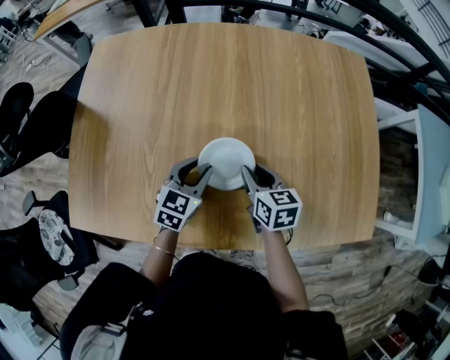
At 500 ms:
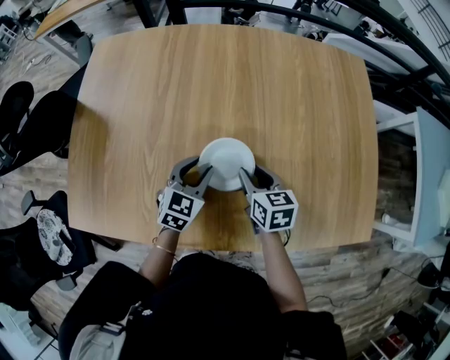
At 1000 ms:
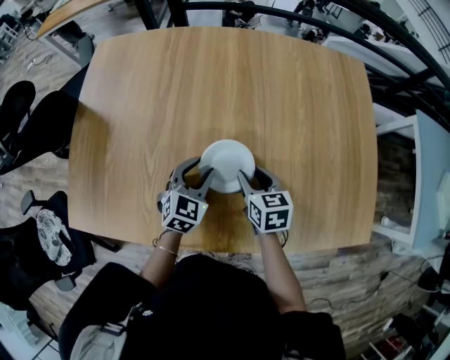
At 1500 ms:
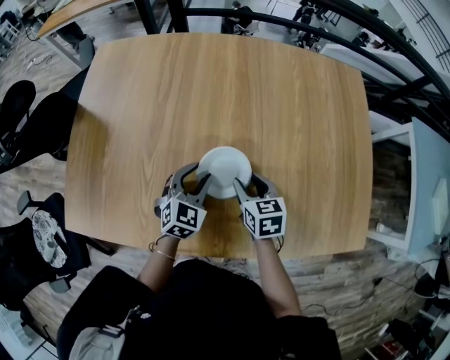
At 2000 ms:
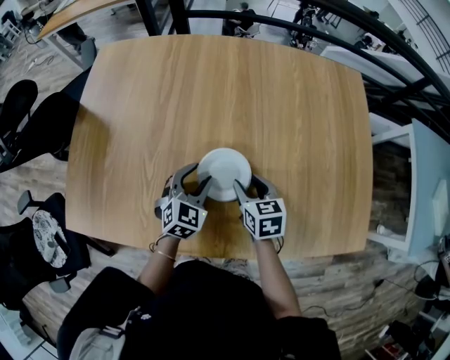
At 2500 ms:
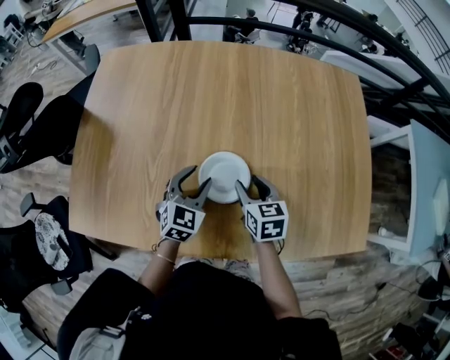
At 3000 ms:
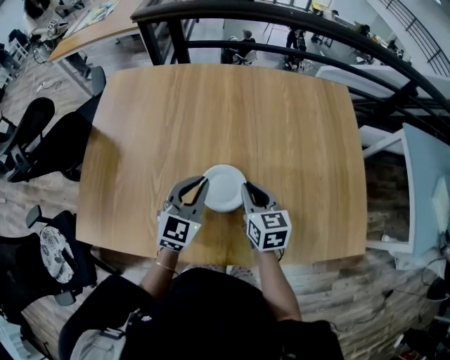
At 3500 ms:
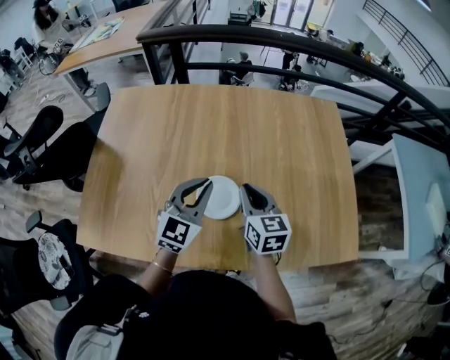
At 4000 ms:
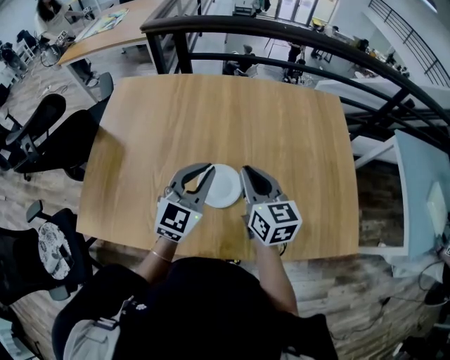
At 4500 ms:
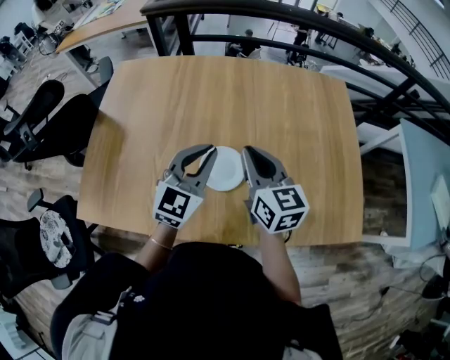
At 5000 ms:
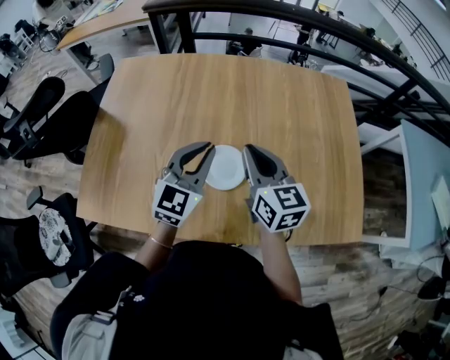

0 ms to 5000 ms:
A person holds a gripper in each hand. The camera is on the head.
0 ms to 2500 ms: The right gripper opens its fingers.
2500 ms to 5000 ms: Both grippers move upward, approximately 20 cm. The right gripper swivels roughly 30 degrees, and closes, while the left gripper changes its angle by roughly 20 degrees, and closes its fingers.

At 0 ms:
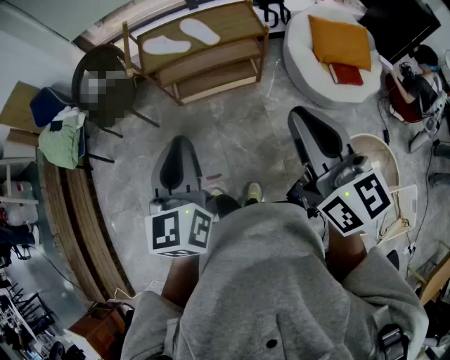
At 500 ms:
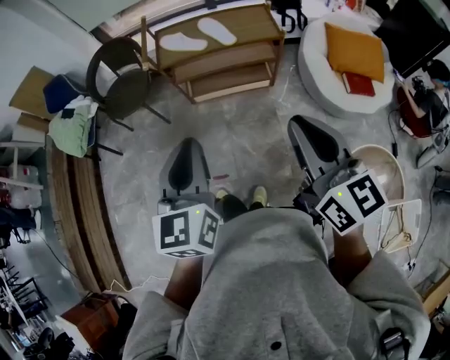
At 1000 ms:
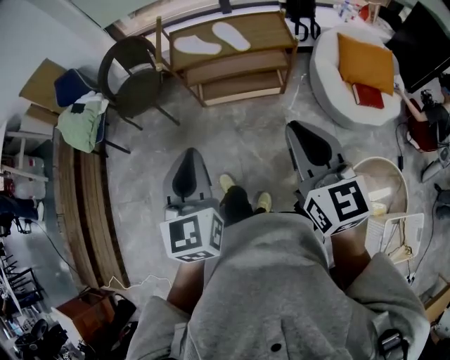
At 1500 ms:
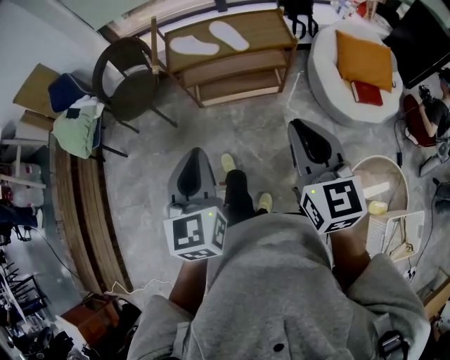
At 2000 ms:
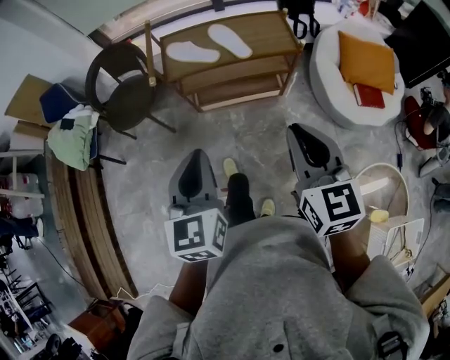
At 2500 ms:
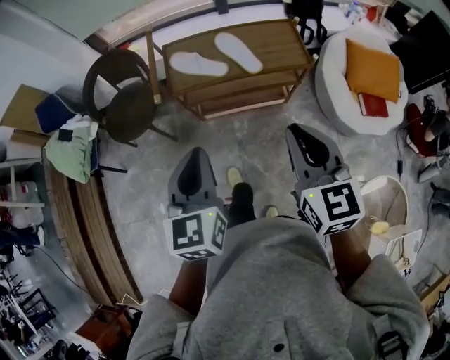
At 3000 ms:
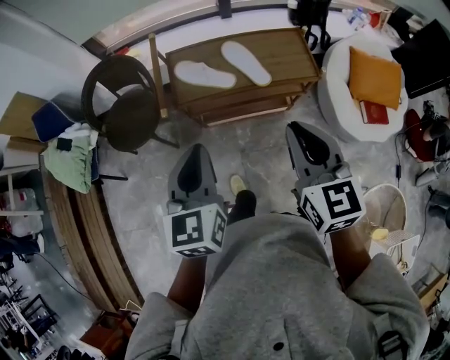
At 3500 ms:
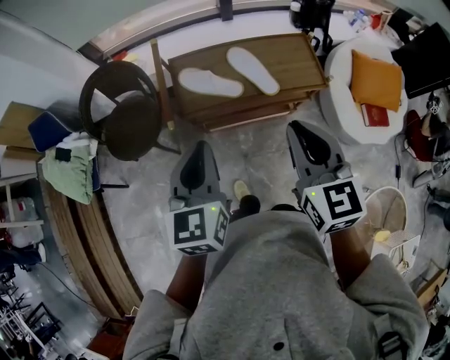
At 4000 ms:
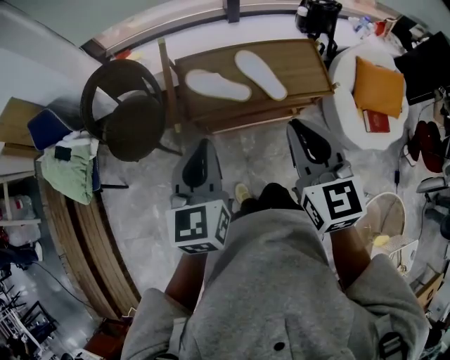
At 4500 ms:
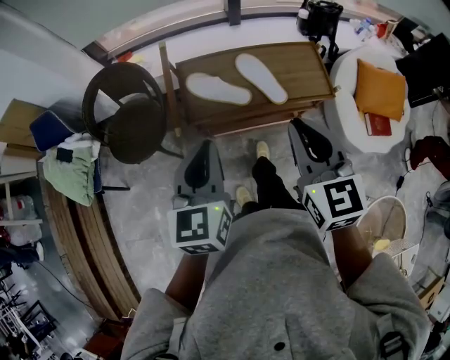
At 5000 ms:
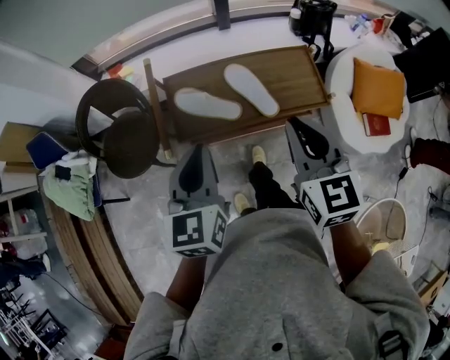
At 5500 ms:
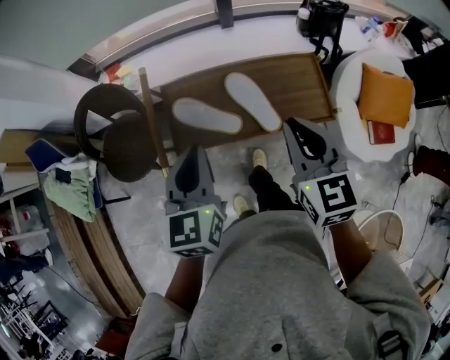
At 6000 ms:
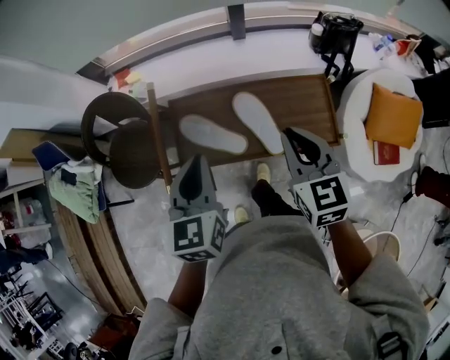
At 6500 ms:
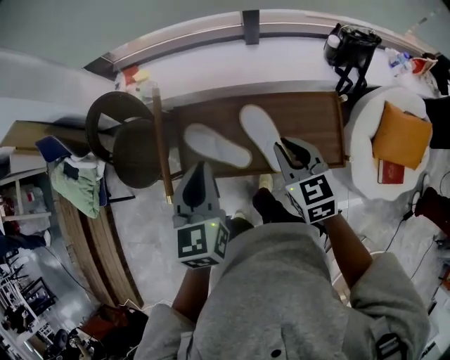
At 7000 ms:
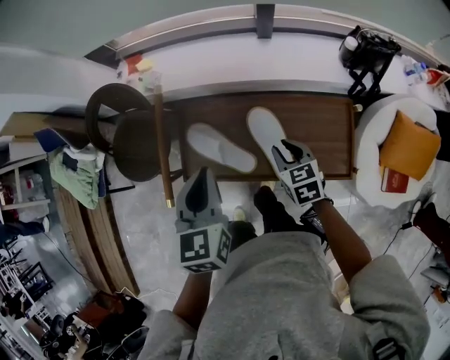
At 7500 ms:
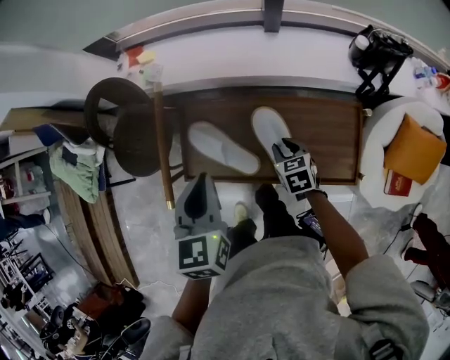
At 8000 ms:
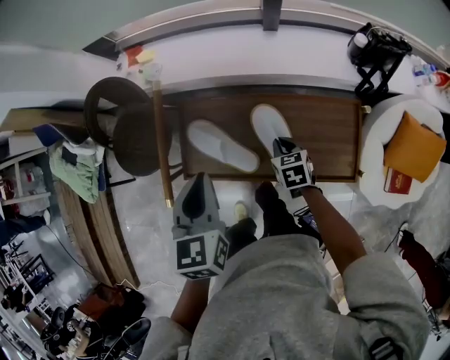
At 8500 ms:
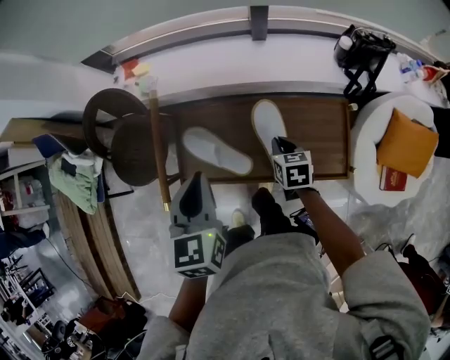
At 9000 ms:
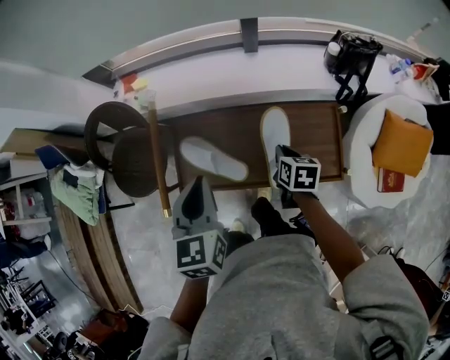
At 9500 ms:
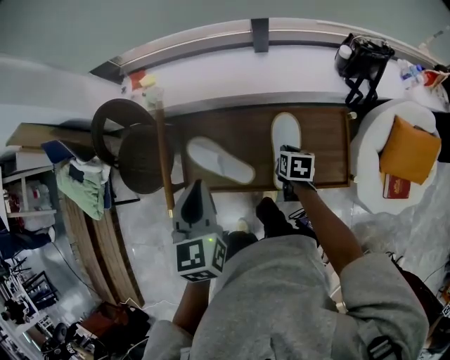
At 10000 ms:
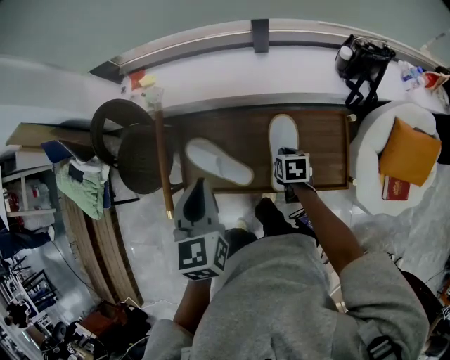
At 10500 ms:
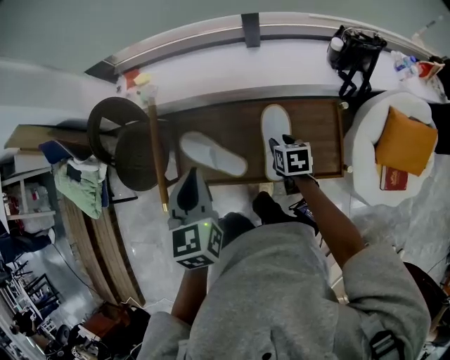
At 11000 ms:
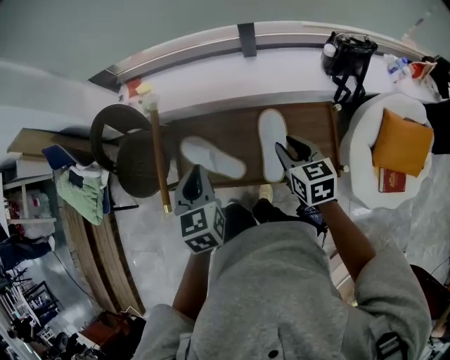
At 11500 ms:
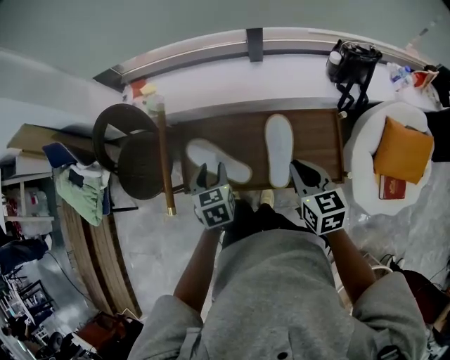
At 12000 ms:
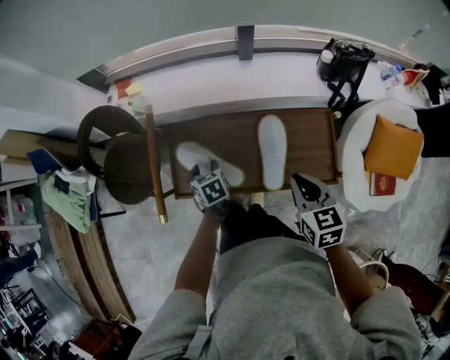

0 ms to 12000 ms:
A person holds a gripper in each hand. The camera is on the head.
0 ms to 2000 ms: The right gripper travels forward and downward by approximately 15 cm, and rotates approximately 20 degrees, while the left gripper moves forward, about 10 cm.
2000 ms to 4000 ms: The right gripper travels forward and to the left by some 30 cm; the left gripper heads forward, covering approximately 30 cm.
4000 ms to 6000 ms: Both grippers travel together forward and to the right, approximately 20 cm.
6000 ms to 8000 ms: The left gripper moves downward and forward, some 10 cm; the right gripper is displaced downward by some 30 cm, and changes its angle by about 30 degrees.
8000 ms to 10000 ms: The right gripper shifts some 5 cm to the right.
10000 ms to 12000 ms: The left gripper moves downward, some 25 cm, turns by approximately 30 degrees, and opens up, while the right gripper travels upward and backward by roughly 20 cm, turns by approximately 30 degrees, and opens, then closes once more.

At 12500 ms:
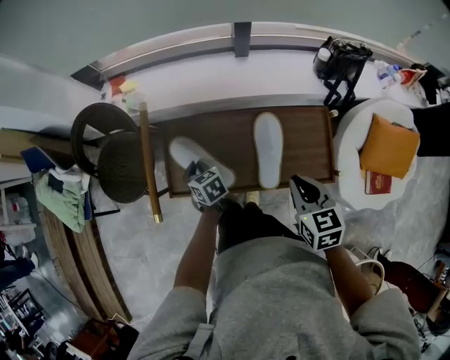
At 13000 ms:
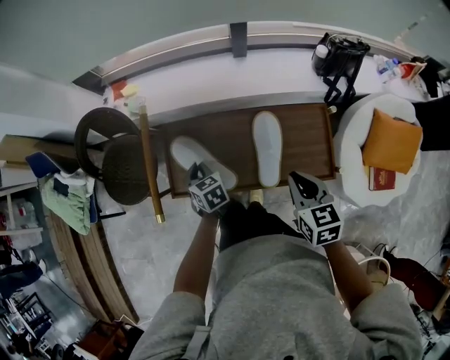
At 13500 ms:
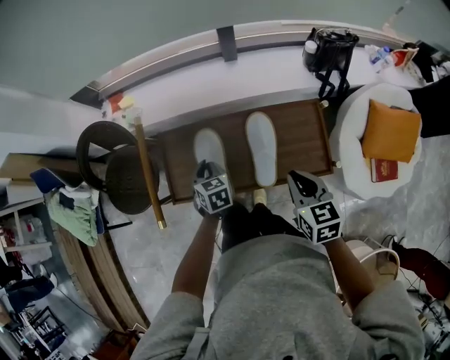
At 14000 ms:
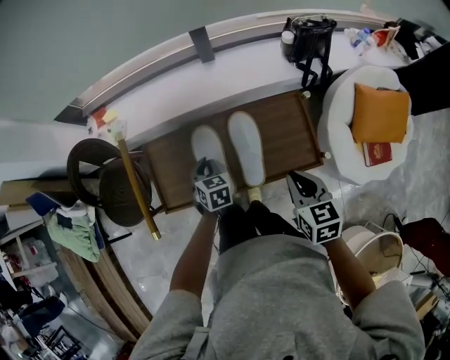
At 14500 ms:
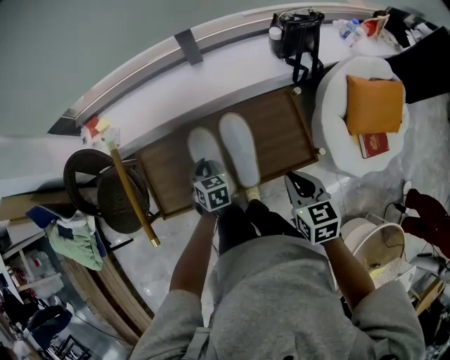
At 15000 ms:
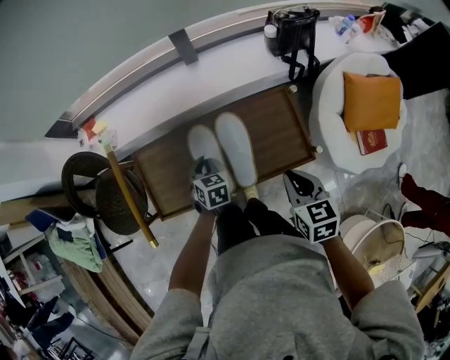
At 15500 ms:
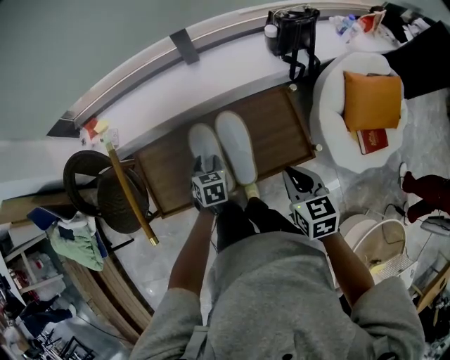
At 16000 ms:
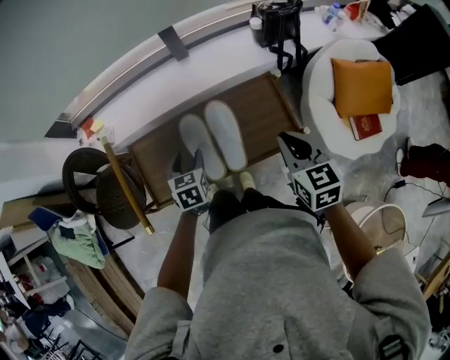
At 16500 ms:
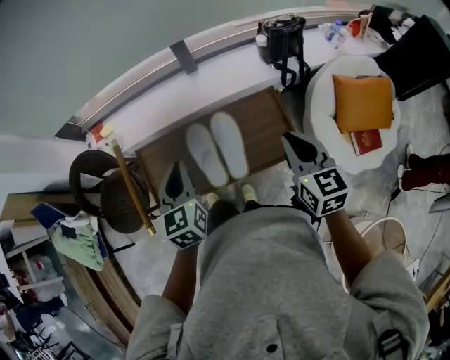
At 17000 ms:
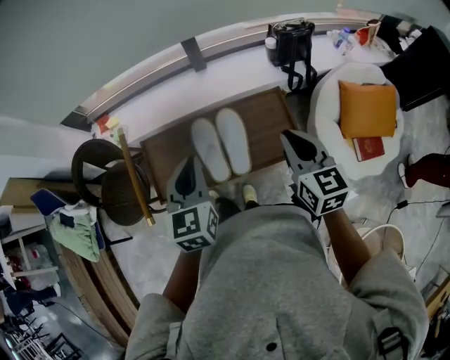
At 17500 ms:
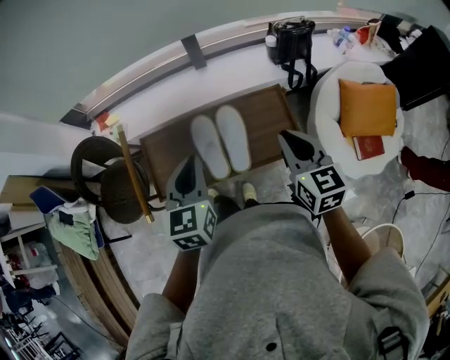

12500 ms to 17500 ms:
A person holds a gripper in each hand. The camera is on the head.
12500 ms to 15000 ms: The left gripper goes approximately 15 cm to the right, and rotates some 40 degrees, while the right gripper moves to the right, some 5 cm.
15000 ms to 17500 ms: The right gripper moves upward, roughly 15 cm, and swivels some 20 degrees; the left gripper goes approximately 30 cm upward, turns by some 30 degrees, and opens and closes again.

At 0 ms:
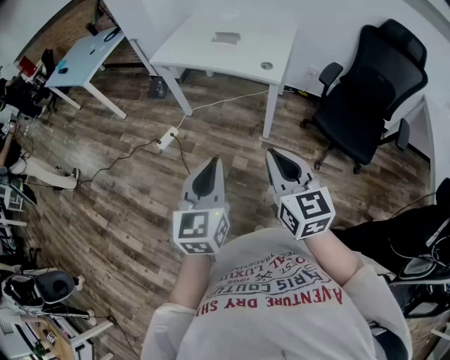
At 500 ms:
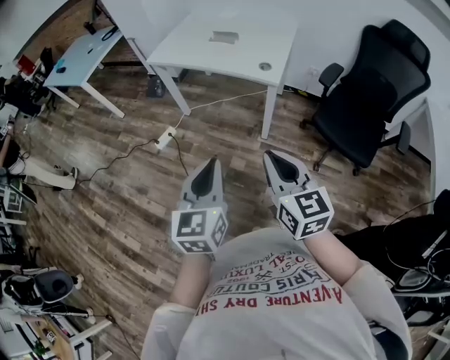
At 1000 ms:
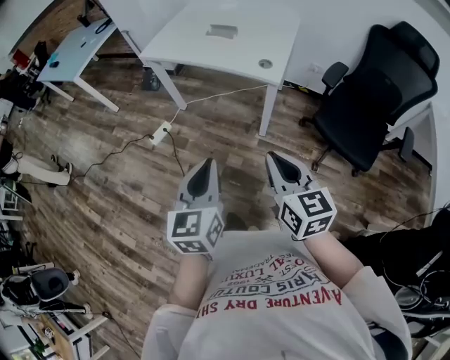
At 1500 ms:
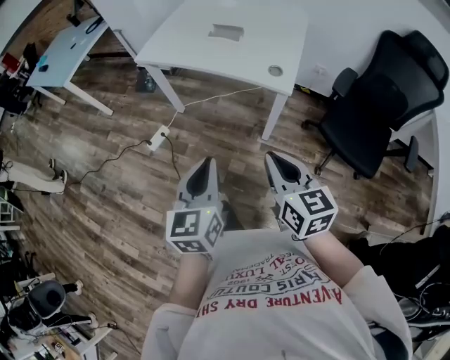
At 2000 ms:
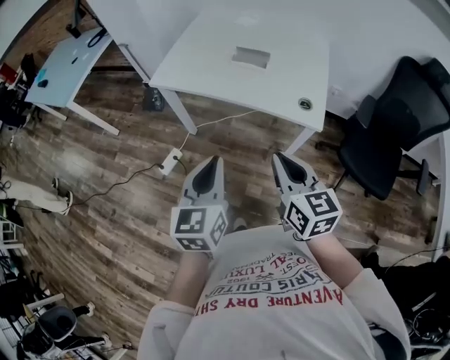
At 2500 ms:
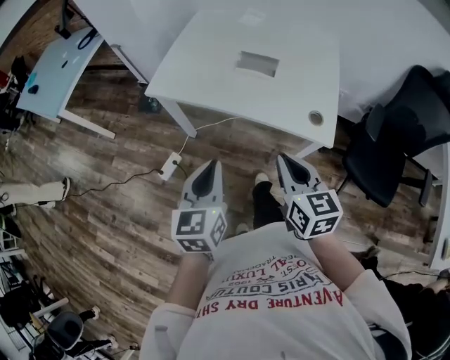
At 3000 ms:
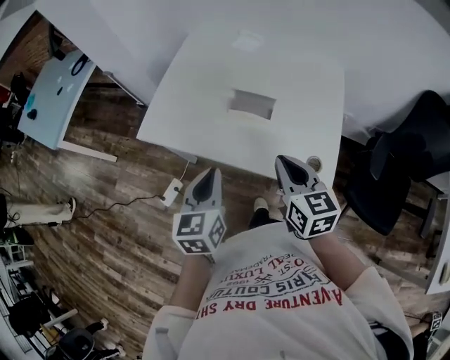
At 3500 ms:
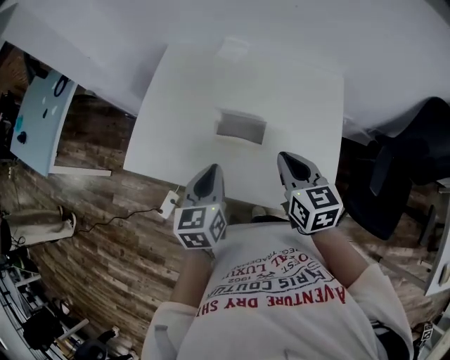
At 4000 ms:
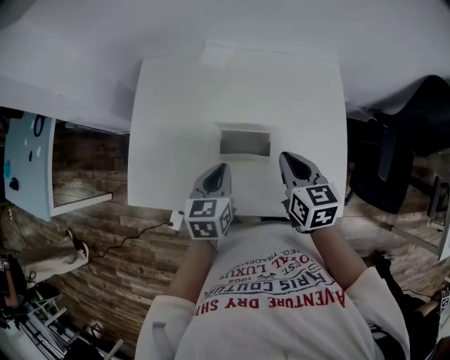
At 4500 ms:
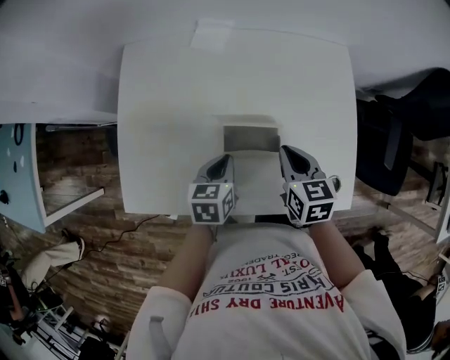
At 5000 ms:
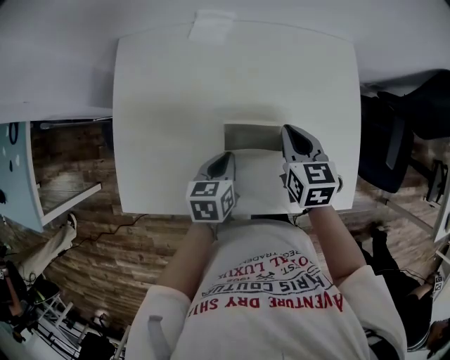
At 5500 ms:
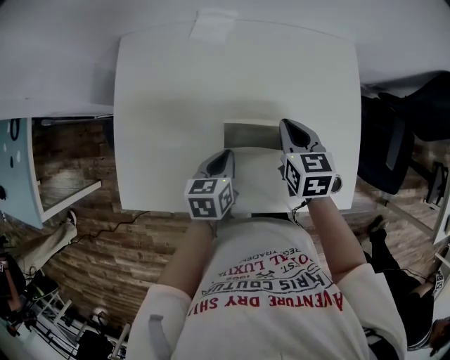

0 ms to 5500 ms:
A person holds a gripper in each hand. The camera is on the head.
0 ms to 2000 ms: The grippers both shift forward by about 35 cm.
2000 ms to 3500 ms: Both grippers move forward, some 40 cm.
3500 ms to 5500 ms: The right gripper ends up roughly 20 cm from where it was, and changes its angle by approximately 20 degrees; the left gripper heads downward, covering about 15 cm, and turns by roughly 30 degrees.
